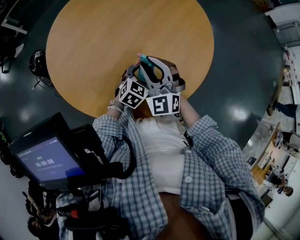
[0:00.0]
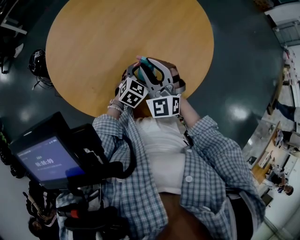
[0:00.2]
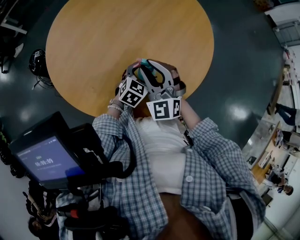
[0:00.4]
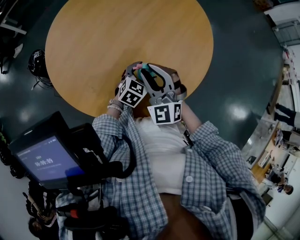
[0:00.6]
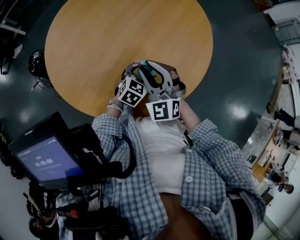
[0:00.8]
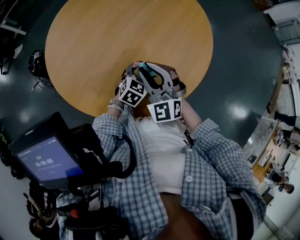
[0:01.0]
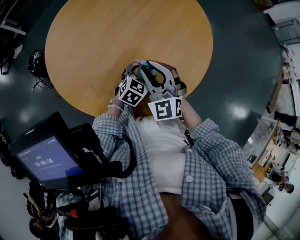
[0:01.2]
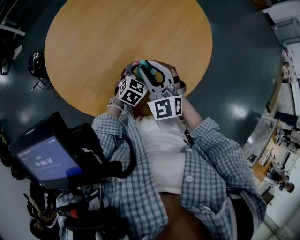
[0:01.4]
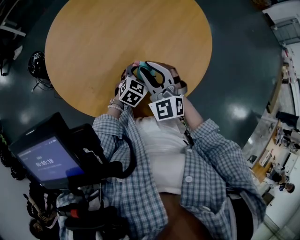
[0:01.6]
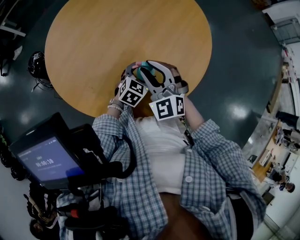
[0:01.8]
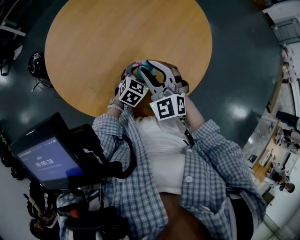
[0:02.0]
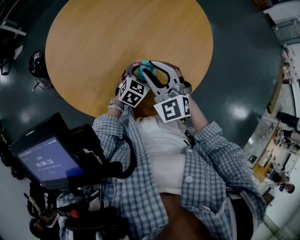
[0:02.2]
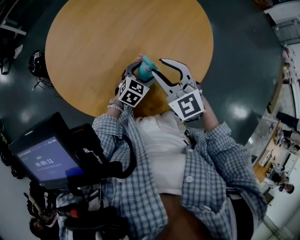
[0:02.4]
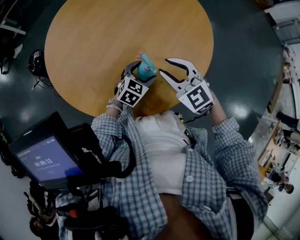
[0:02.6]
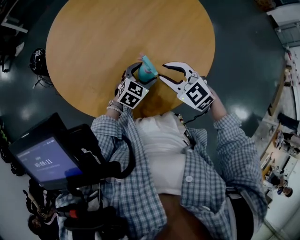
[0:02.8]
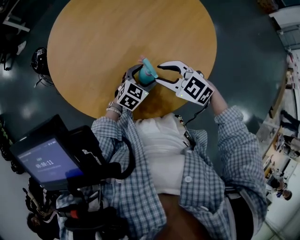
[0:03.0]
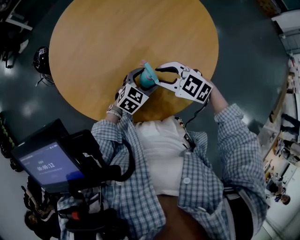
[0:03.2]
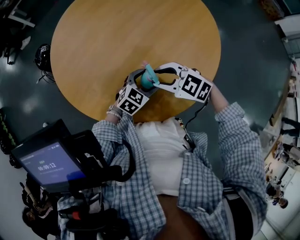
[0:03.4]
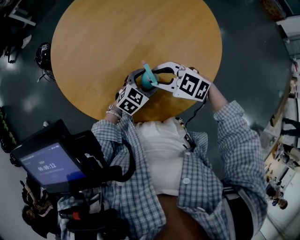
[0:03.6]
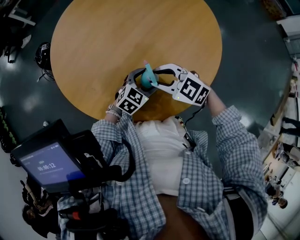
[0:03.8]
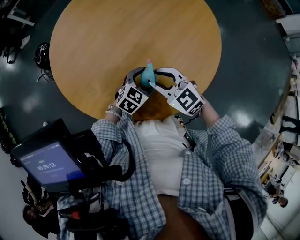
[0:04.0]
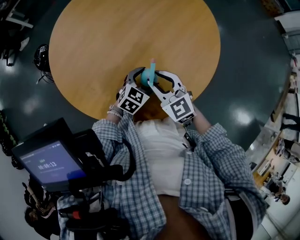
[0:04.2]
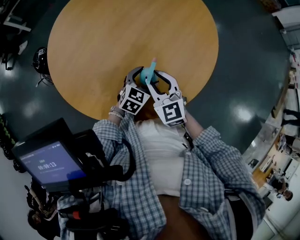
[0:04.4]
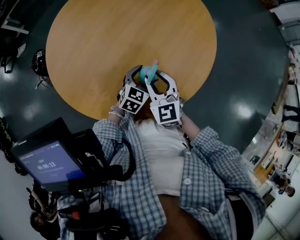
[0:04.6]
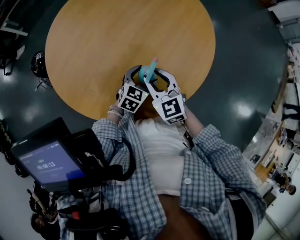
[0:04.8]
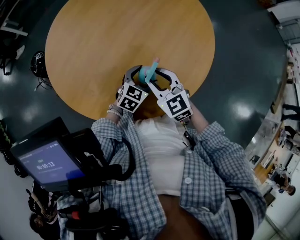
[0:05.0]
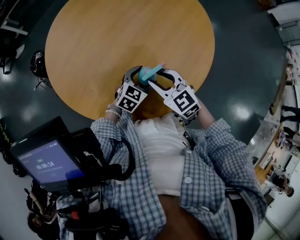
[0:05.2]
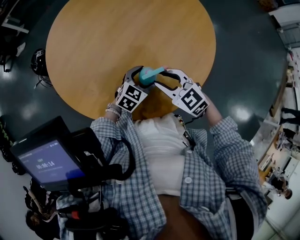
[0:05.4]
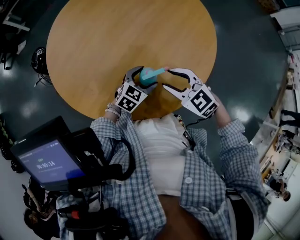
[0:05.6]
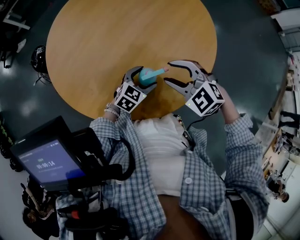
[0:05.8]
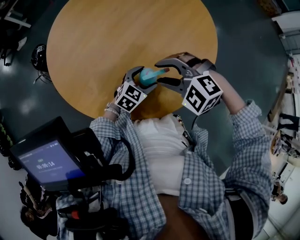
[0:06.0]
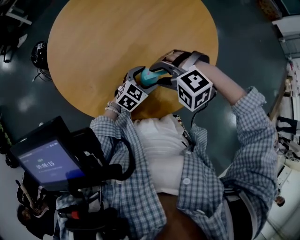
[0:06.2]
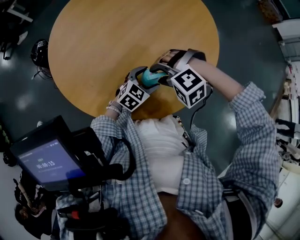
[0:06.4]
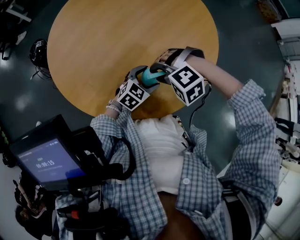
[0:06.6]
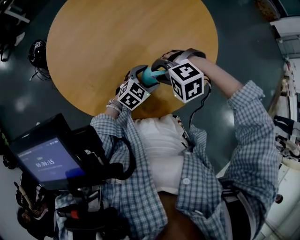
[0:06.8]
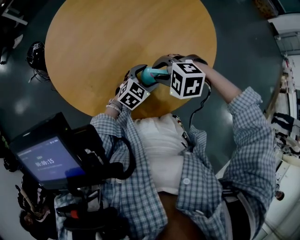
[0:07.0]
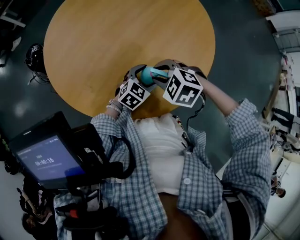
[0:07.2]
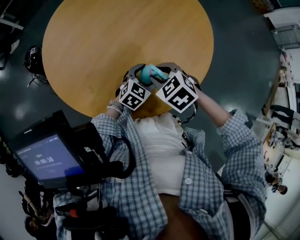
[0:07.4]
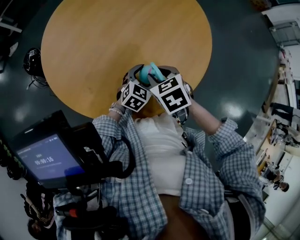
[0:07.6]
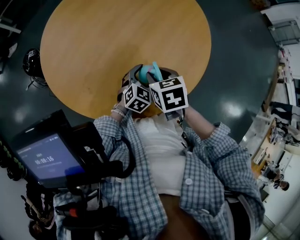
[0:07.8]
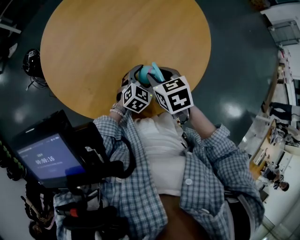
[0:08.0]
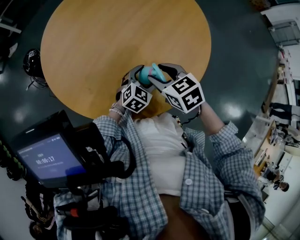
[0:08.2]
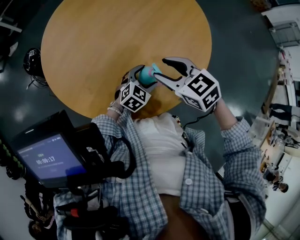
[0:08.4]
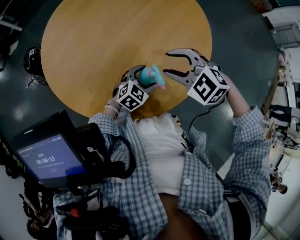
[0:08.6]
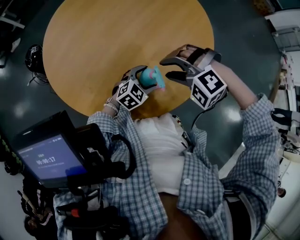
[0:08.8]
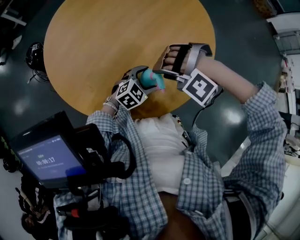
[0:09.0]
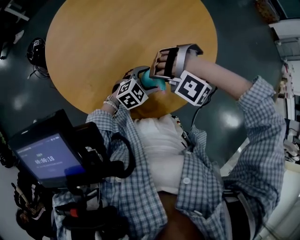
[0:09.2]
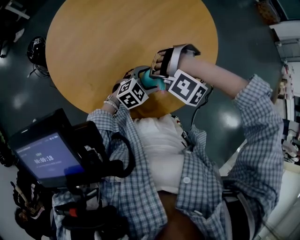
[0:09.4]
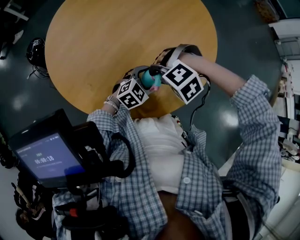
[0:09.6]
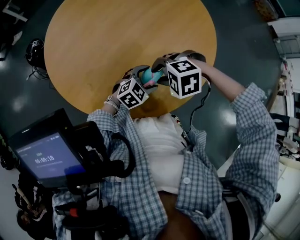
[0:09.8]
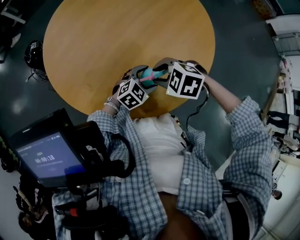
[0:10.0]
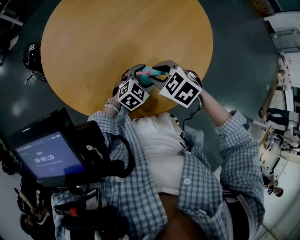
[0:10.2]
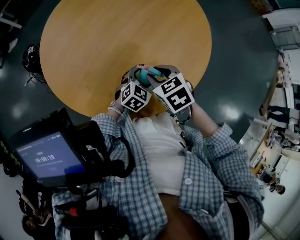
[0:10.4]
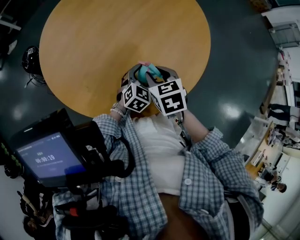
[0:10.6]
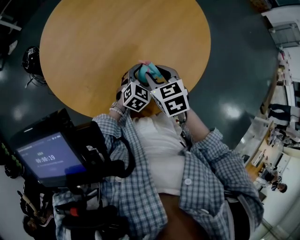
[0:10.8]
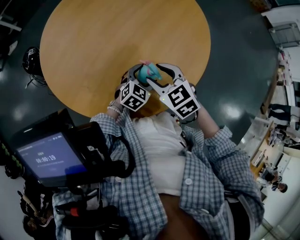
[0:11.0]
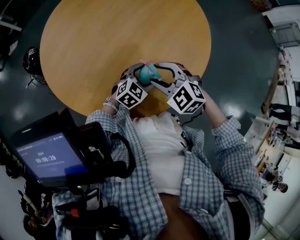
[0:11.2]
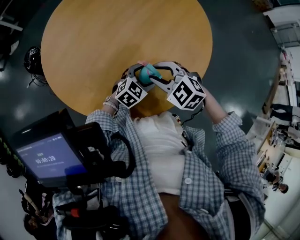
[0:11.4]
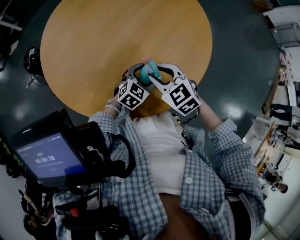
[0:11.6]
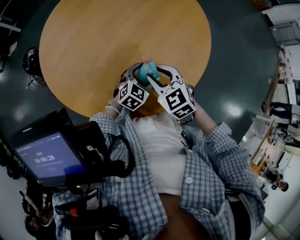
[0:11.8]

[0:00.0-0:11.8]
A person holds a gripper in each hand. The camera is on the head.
0:00.0 to 0:01.4: The grippers stay close to where they were, moving slightly.
0:01.4 to 0:03.0: The right gripper moves some 5 cm, and changes its angle by approximately 40 degrees.
0:03.0 to 0:04.4: The right gripper rotates about 40 degrees.
0:04.4 to 0:06.0: The right gripper ends up about 5 cm from where it was, and changes its angle by some 60 degrees.
0:06.0 to 0:07.4: The right gripper is displaced downward by about 5 cm, and rolls clockwise, seen from behind, by approximately 50 degrees.
0:07.4 to 0:08.8: The right gripper changes place by approximately 5 cm, and rolls counterclockwise, seen from behind, by roughly 70 degrees.
0:08.8 to 0:10.4: The right gripper travels downward by approximately 5 cm, and rotates around the line of its fingers by approximately 80 degrees, clockwise from behind.
0:10.4 to 0:11.8: The right gripper swivels approximately 20 degrees.

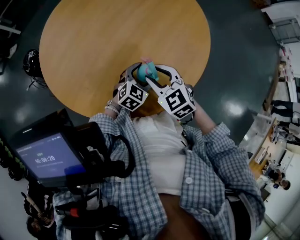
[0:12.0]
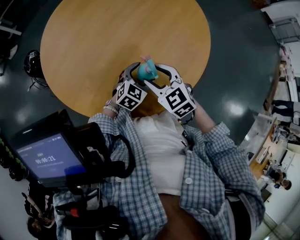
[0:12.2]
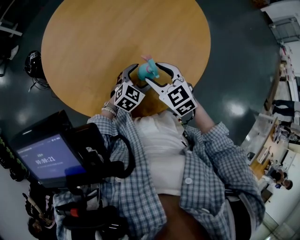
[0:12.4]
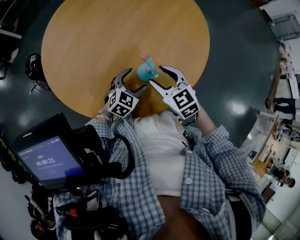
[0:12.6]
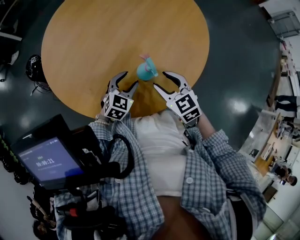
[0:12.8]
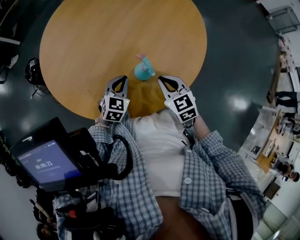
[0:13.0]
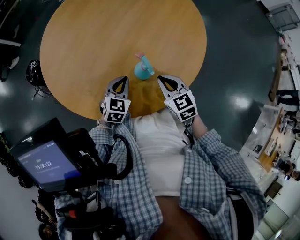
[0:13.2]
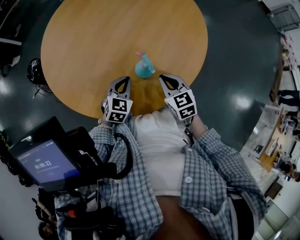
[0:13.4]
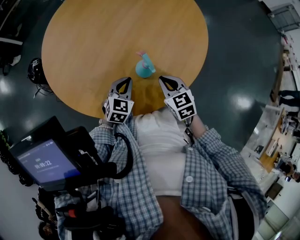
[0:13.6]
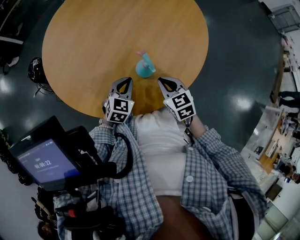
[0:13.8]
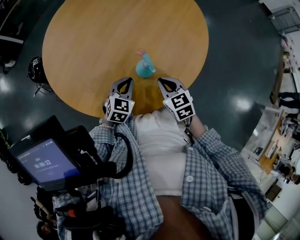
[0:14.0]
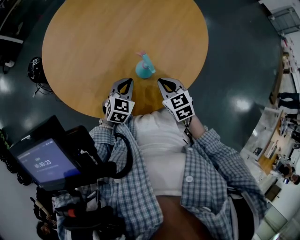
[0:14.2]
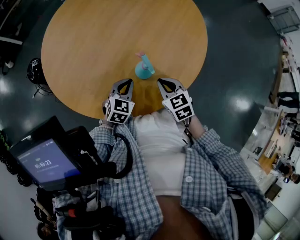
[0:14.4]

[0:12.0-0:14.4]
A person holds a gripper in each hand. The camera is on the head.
0:12.0 to 0:13.2: The right gripper heads to the right, covering about 5 cm, swivels about 20 degrees, and closes its fingers. The left gripper travels to the left by approximately 10 cm, and closes.
0:13.2 to 0:14.4: The grippers stay close to where they were, moving slightly.

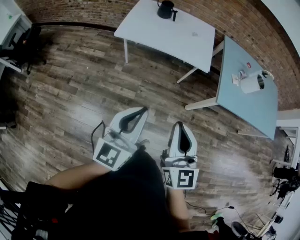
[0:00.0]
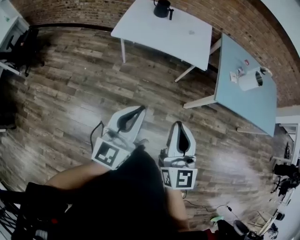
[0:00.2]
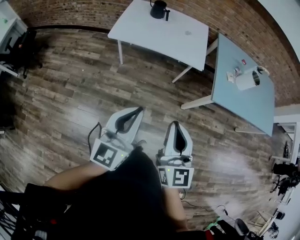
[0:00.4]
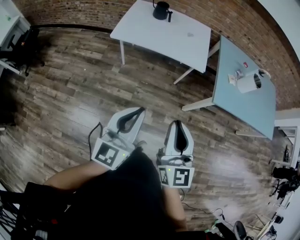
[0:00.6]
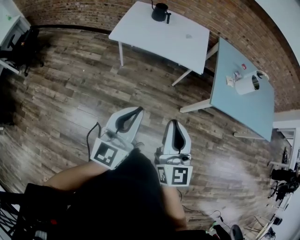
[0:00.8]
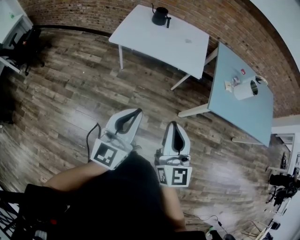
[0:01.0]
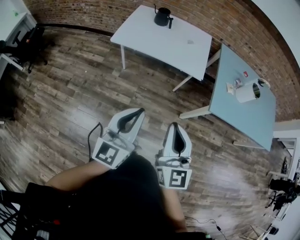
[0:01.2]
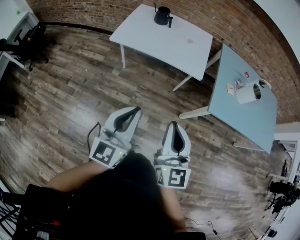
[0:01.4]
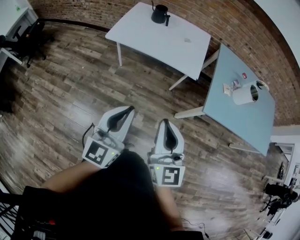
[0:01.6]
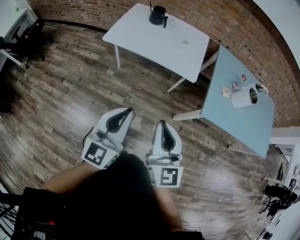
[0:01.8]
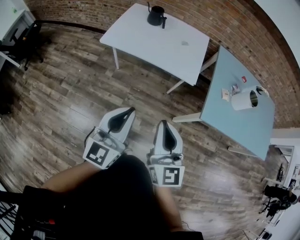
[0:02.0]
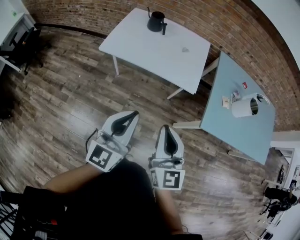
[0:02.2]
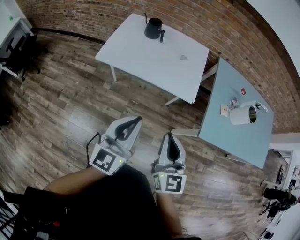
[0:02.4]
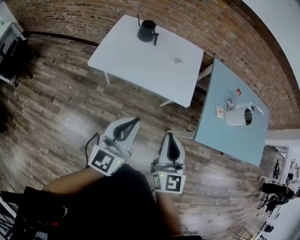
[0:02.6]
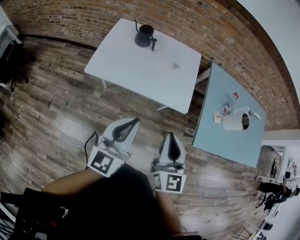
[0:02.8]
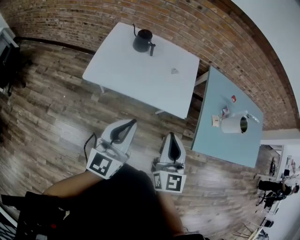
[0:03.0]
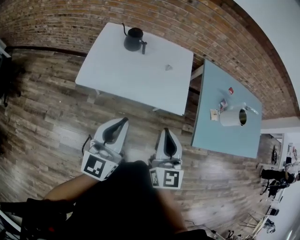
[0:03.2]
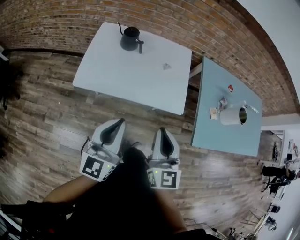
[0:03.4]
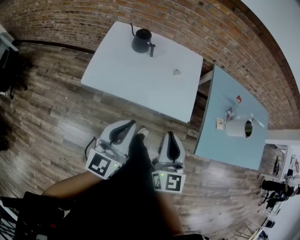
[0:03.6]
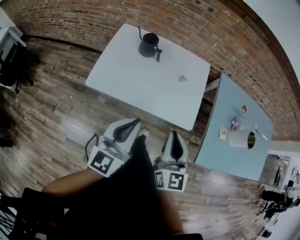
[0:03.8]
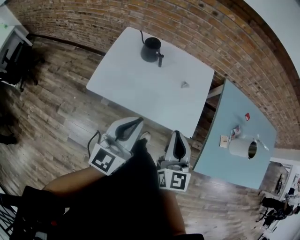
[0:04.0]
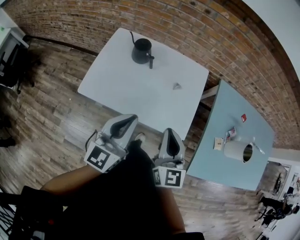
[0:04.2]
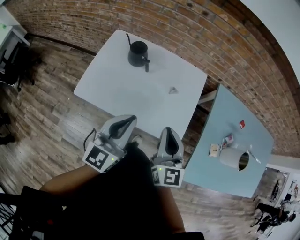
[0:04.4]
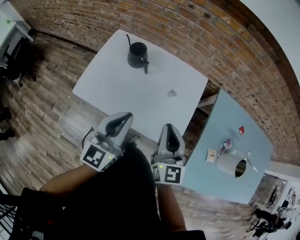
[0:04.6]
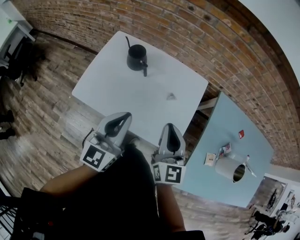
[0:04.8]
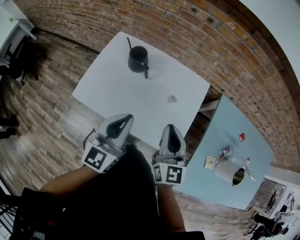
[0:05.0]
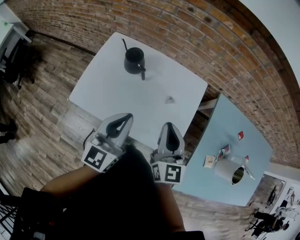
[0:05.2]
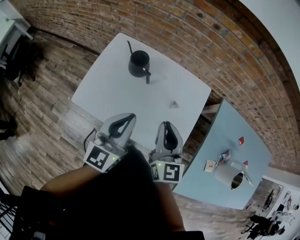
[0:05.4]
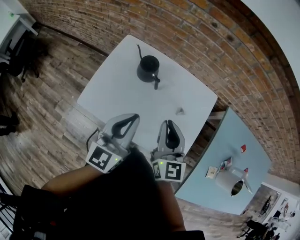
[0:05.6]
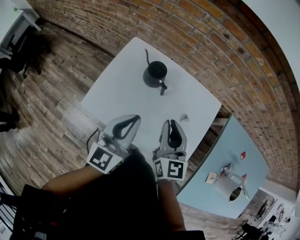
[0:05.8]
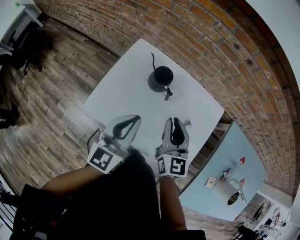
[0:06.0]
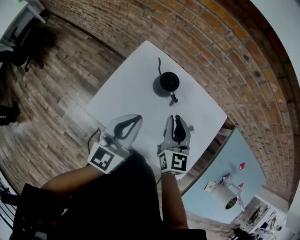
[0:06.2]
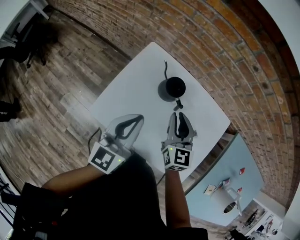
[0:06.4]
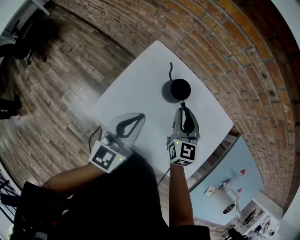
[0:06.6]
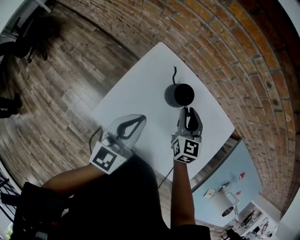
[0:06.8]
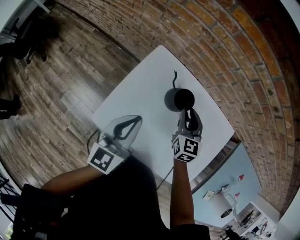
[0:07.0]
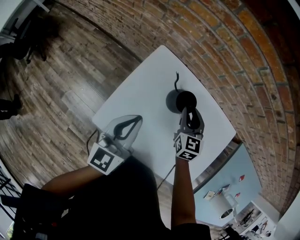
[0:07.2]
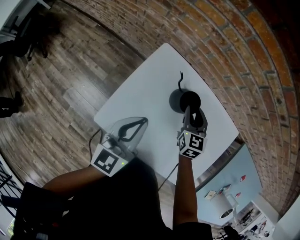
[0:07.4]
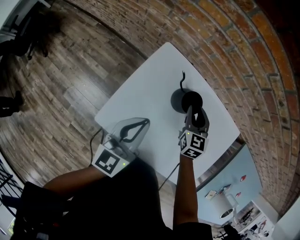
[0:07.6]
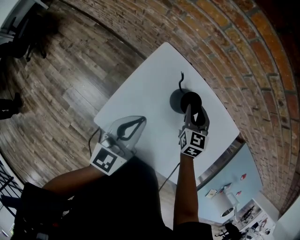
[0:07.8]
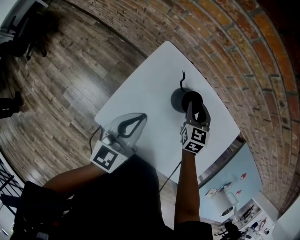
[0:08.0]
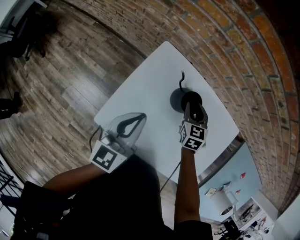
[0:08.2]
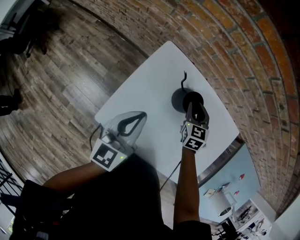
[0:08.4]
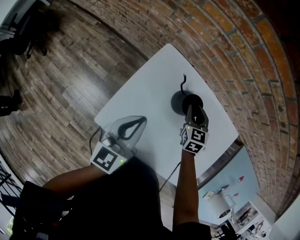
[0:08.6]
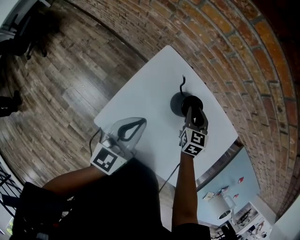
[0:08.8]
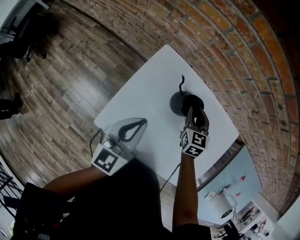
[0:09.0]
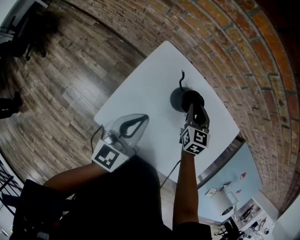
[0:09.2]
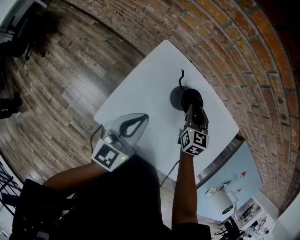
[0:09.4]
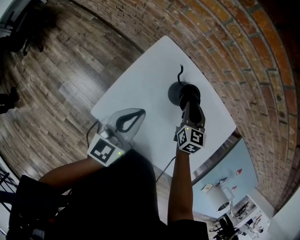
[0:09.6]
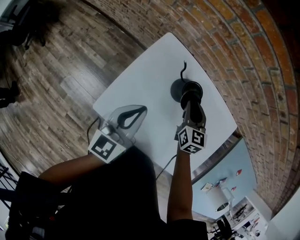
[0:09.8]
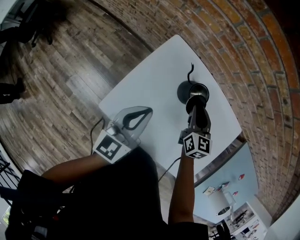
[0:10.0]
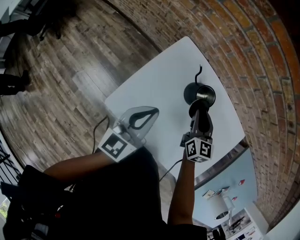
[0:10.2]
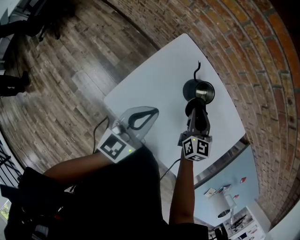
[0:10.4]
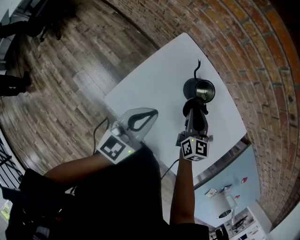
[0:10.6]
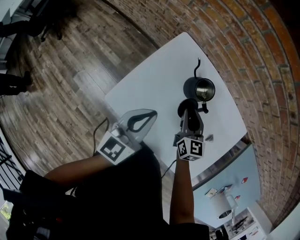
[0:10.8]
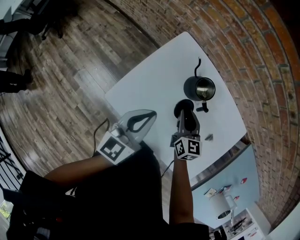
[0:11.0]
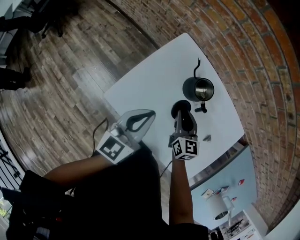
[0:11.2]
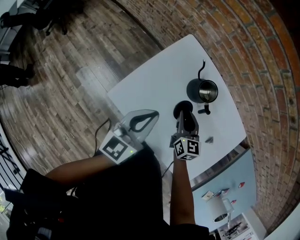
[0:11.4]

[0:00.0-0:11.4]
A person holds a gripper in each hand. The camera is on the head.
0:00.0 to 0:01.4: Both grippers move to the right, about 5 cm.
0:01.4 to 0:02.8: Both grippers move forward, about 25 cm.
0:02.8 to 0:04.2: Both grippers travel together forward, approximately 20 cm.
0:04.2 to 0:05.6: The two grippers go roughly 15 cm forward.
0:05.6 to 0:07.2: The right gripper travels forward, downward and to the left by roughly 30 cm, and turns by about 20 degrees. Meanwhile the left gripper travels to the left and forward by about 20 cm.
0:07.2 to 0:08.6: The right gripper ends up some 5 cm from where it was.
0:08.6 to 0:10.0: The right gripper moves about 5 cm.
0:10.0 to 0:11.4: The left gripper travels backward by roughly 5 cm. Meanwhile the right gripper heads backward, covering about 10 cm.
